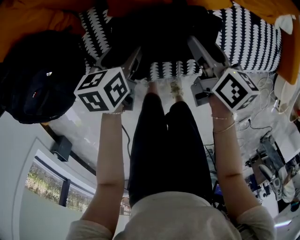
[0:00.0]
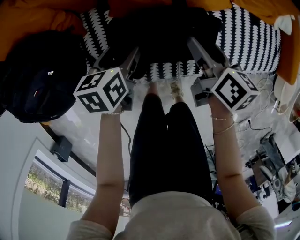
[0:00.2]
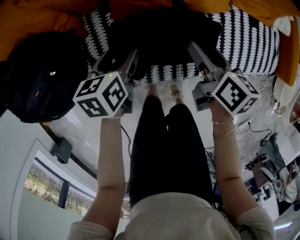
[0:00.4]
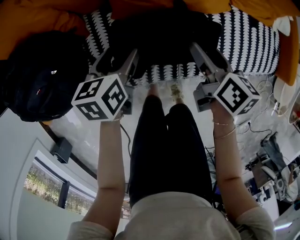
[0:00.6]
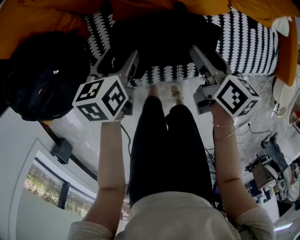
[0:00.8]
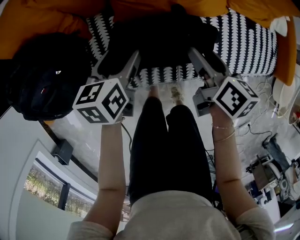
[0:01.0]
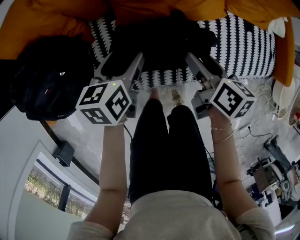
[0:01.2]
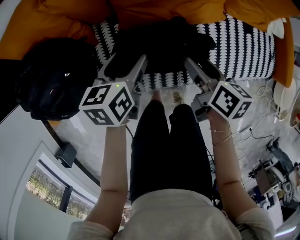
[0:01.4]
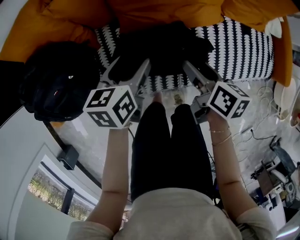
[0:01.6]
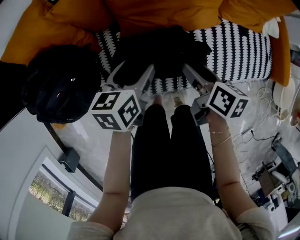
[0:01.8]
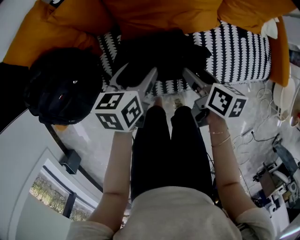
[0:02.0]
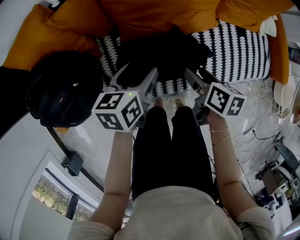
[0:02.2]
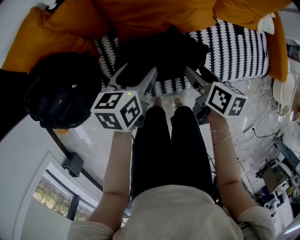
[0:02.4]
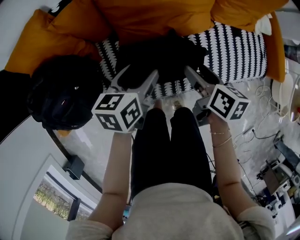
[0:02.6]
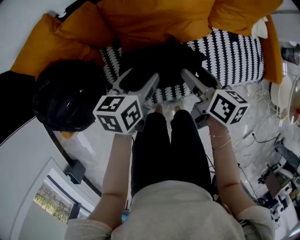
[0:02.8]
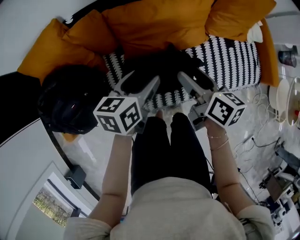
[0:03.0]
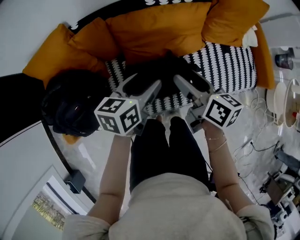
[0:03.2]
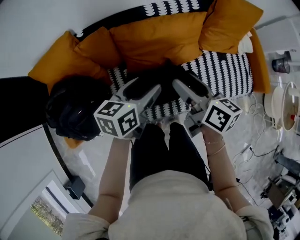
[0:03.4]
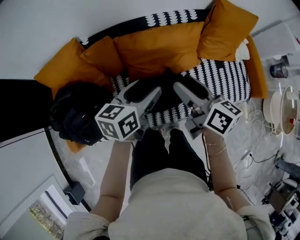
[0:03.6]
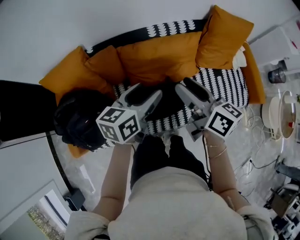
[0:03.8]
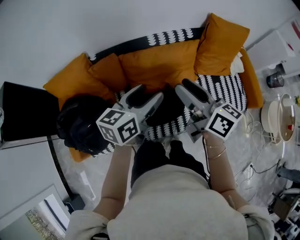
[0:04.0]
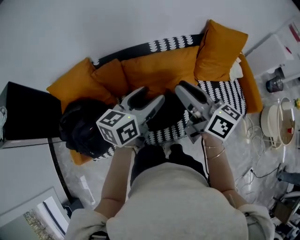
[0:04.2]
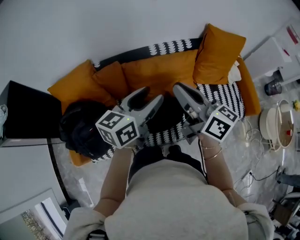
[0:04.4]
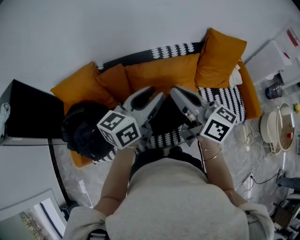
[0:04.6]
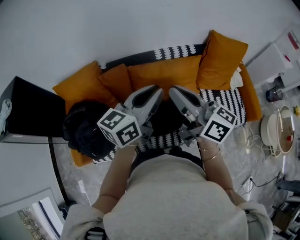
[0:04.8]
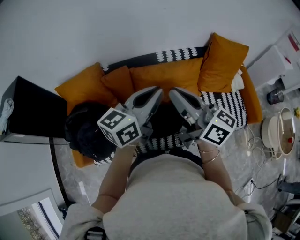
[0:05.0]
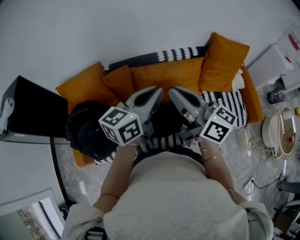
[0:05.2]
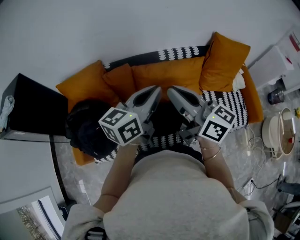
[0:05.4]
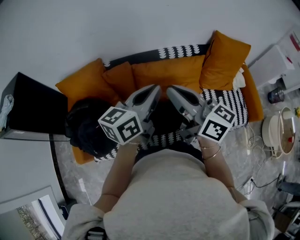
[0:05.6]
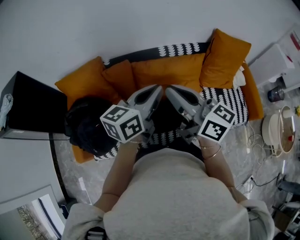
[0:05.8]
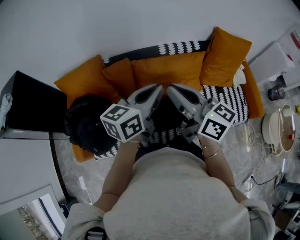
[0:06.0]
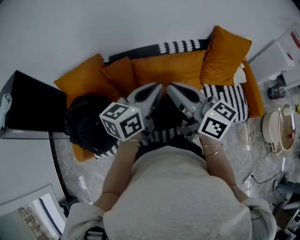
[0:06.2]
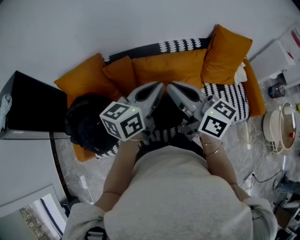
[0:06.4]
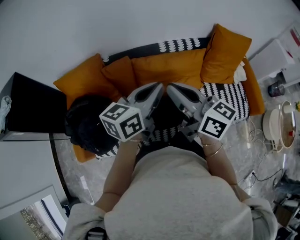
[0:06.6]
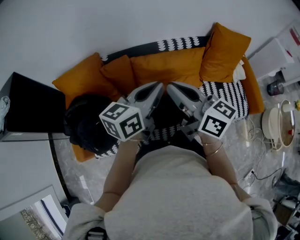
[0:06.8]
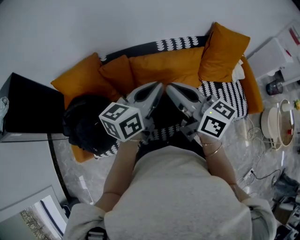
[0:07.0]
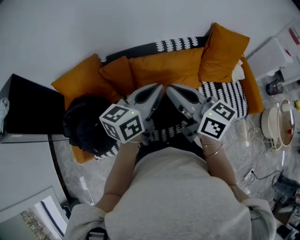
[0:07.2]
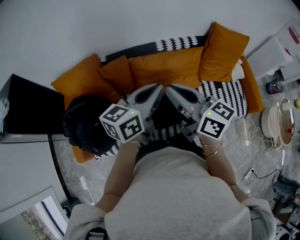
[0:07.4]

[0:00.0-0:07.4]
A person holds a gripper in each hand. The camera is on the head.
0:00.0 to 0:01.4: The right gripper goes about 5 cm upward, while the left gripper heads upward, covering some 10 cm.
0:01.4 to 0:03.0: The grippers both shift upward by about 15 cm.
0:03.0 to 0:04.4: Both grippers travel together upward, about 25 cm. The right gripper swivels some 30 degrees, and closes. Meanwhile the left gripper changes its angle by approximately 30 degrees.
0:04.4 to 0:06.0: The right gripper heads to the left, covering approximately 5 cm. The left gripper closes.
0:06.0 to 0:07.4: The grippers make only small movements.

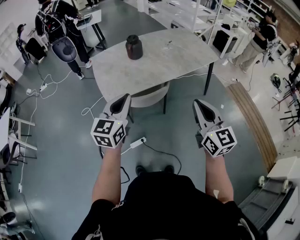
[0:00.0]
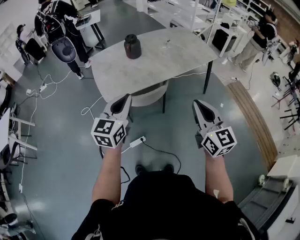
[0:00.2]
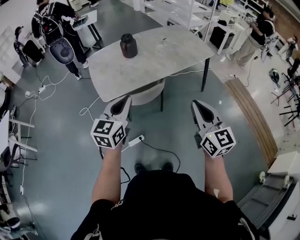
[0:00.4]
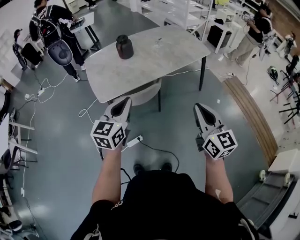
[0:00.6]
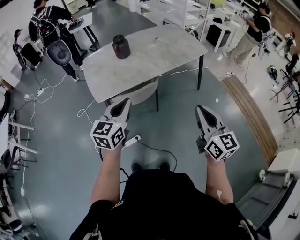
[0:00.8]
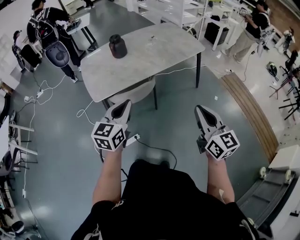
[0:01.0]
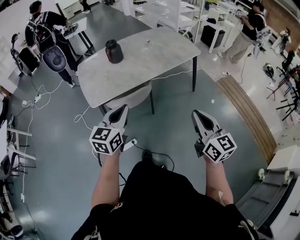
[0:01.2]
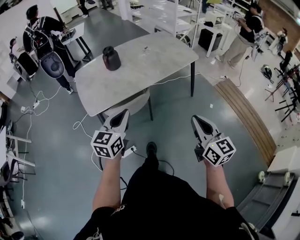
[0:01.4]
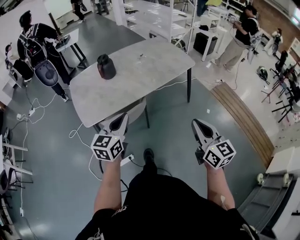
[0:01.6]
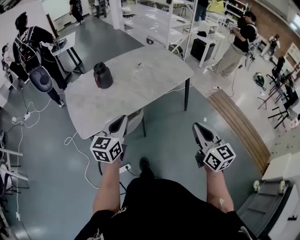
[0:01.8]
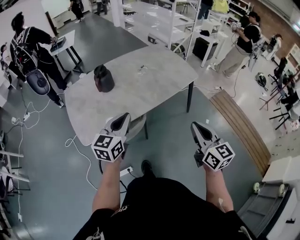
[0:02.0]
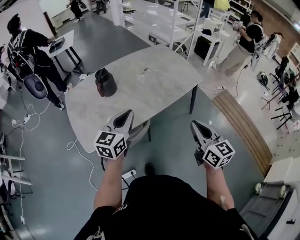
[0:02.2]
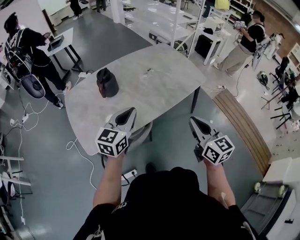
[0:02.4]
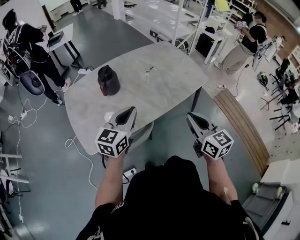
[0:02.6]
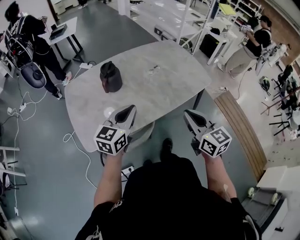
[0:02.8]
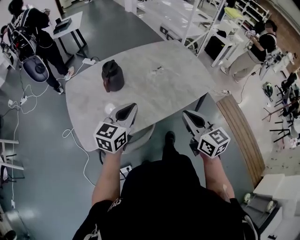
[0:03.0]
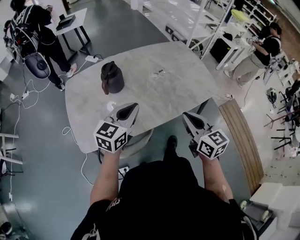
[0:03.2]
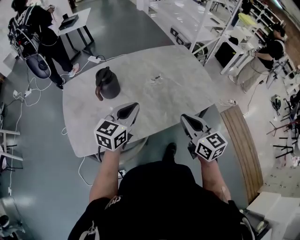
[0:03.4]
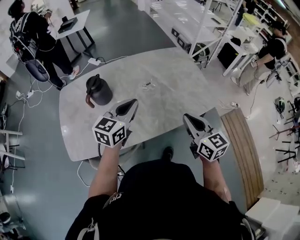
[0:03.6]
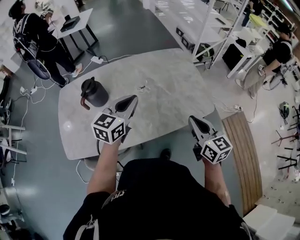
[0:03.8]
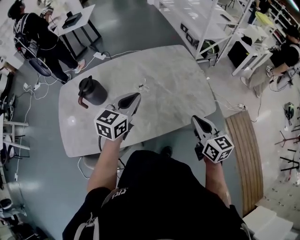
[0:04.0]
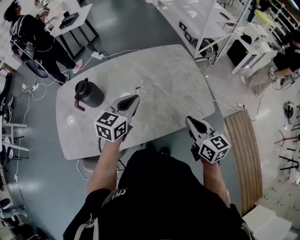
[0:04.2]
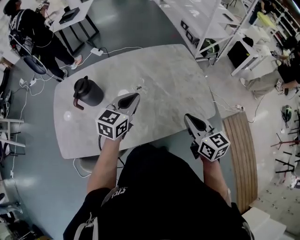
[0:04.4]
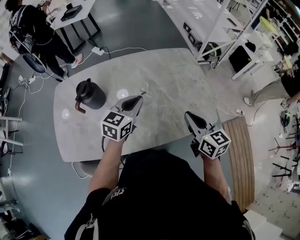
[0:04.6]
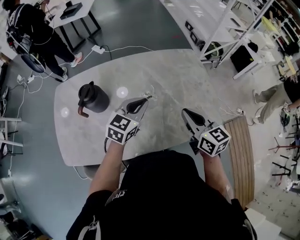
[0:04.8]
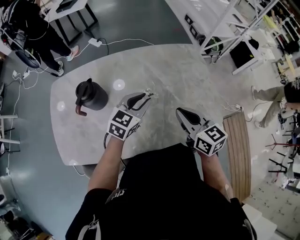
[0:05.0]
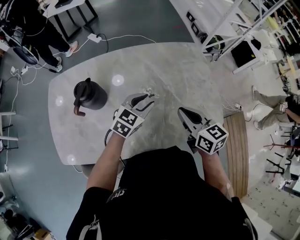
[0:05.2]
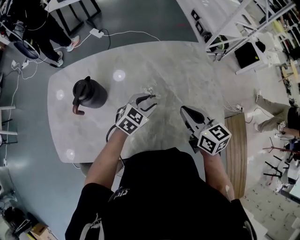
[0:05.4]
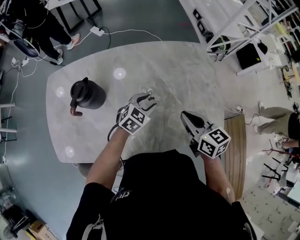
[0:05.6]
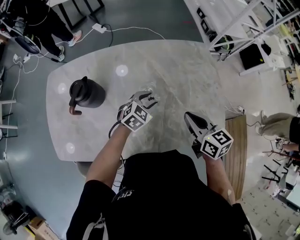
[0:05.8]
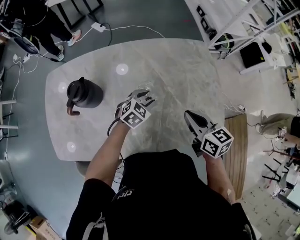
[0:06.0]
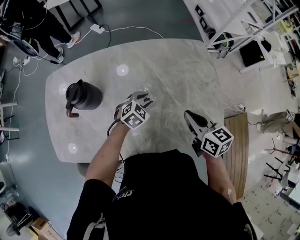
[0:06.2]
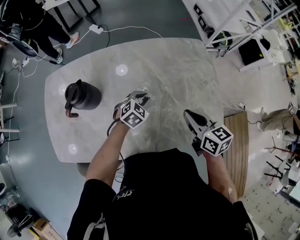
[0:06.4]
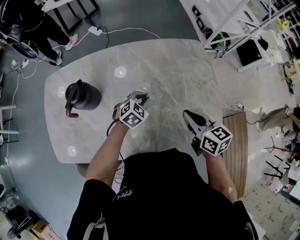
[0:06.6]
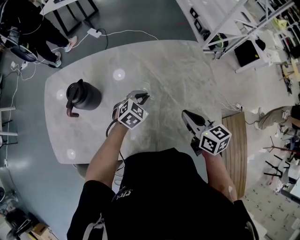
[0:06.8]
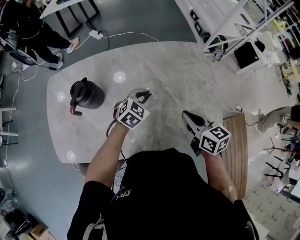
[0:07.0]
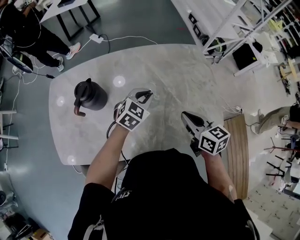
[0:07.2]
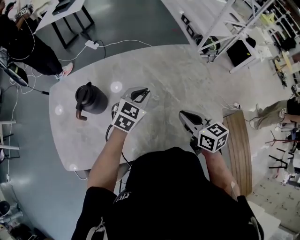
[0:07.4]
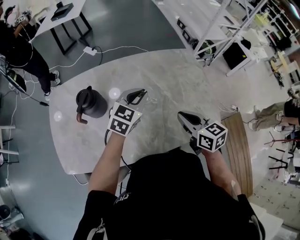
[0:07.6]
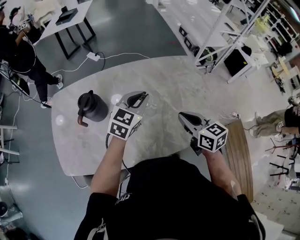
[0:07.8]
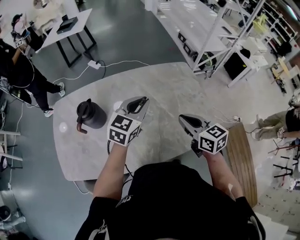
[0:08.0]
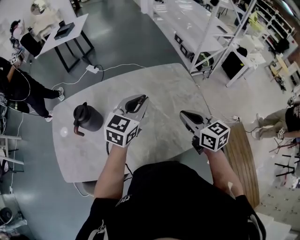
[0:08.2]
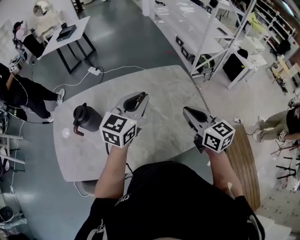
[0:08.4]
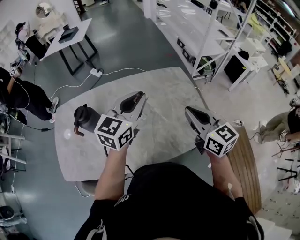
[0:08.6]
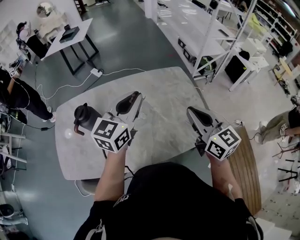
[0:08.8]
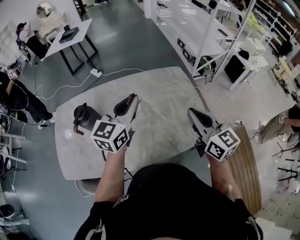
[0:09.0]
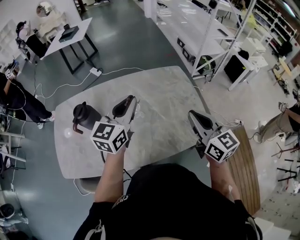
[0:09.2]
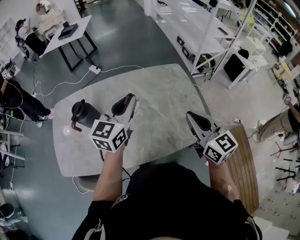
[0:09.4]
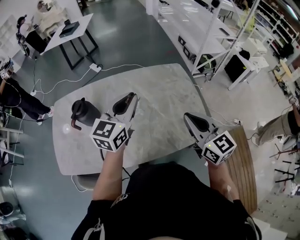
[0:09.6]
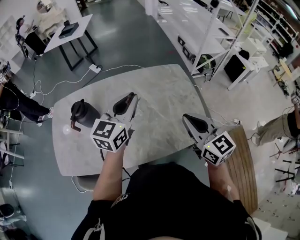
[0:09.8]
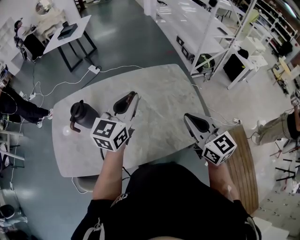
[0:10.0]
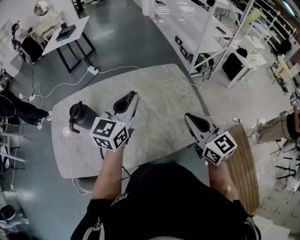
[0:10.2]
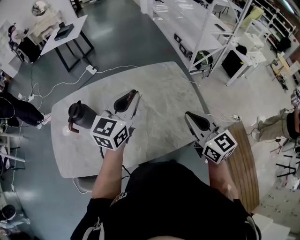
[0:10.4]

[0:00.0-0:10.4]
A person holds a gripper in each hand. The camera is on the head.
0:00.0 to 0:01.4: The grippers both shift to the right by approximately 15 cm.
0:01.4 to 0:03.0: Both grippers travel together forward, roughly 35 cm.
0:03.0 to 0:04.4: Both grippers travel together forward and to the right, approximately 30 cm.
0:04.4 to 0:06.0: The left gripper shifts some 25 cm downward and forward, rotates some 30 degrees, and opens, while the right gripper travels forward, downward and to the left by some 15 cm.
0:06.0 to 0:07.4: The right gripper shifts by roughly 5 cm. Meanwhile the left gripper travels upward by approximately 15 cm, and closes its fingers.
0:07.4 to 0:09.0: The right gripper is displaced upward and to the right by roughly 20 cm, and swivels roughly 20 degrees. Meanwhile the left gripper moves upward, about 20 cm, and rotates roughly 30 degrees.
0:09.0 to 0:10.4: There are only small adjustments of the grippers.

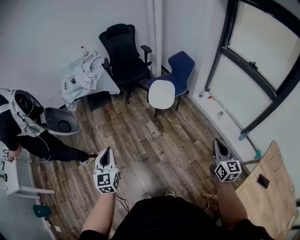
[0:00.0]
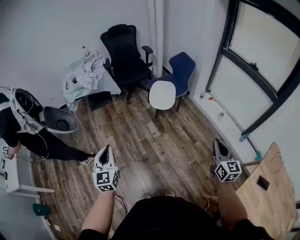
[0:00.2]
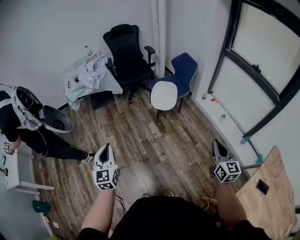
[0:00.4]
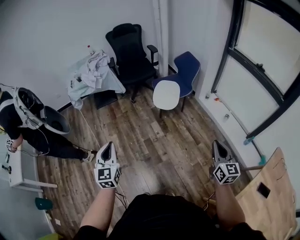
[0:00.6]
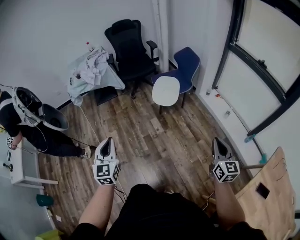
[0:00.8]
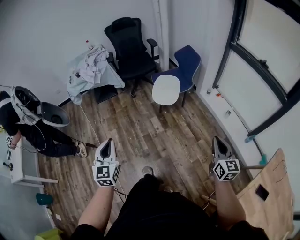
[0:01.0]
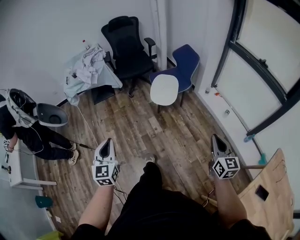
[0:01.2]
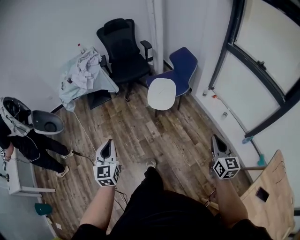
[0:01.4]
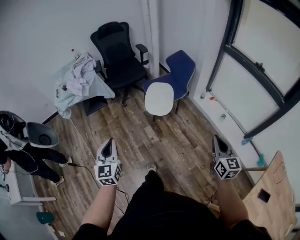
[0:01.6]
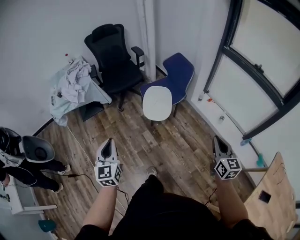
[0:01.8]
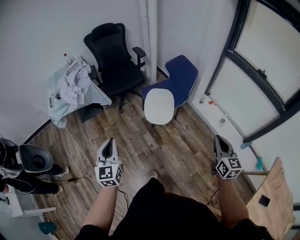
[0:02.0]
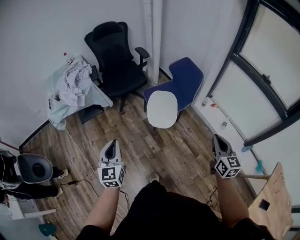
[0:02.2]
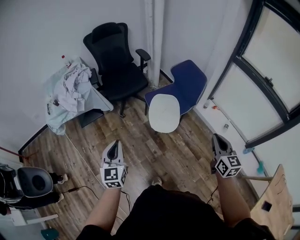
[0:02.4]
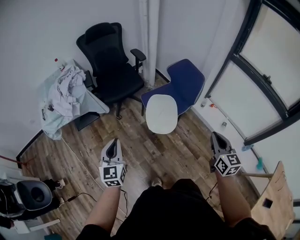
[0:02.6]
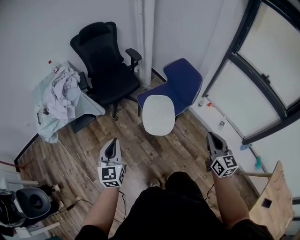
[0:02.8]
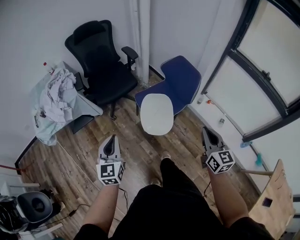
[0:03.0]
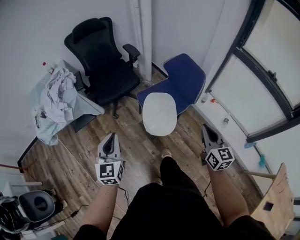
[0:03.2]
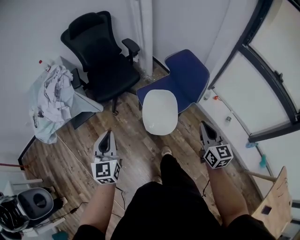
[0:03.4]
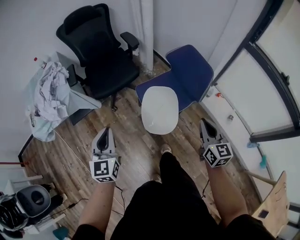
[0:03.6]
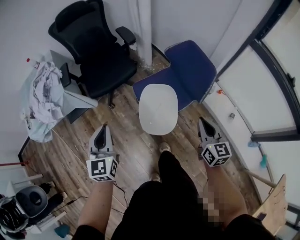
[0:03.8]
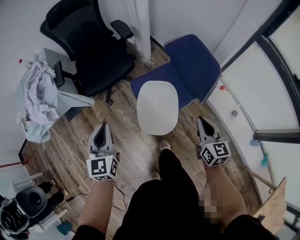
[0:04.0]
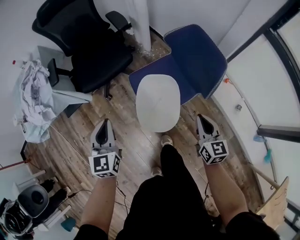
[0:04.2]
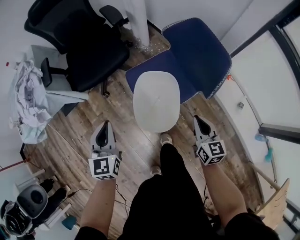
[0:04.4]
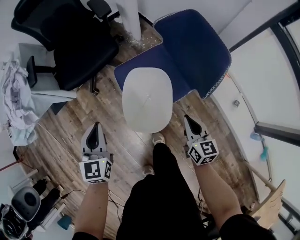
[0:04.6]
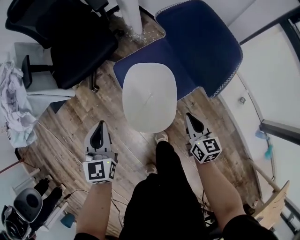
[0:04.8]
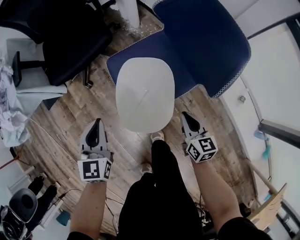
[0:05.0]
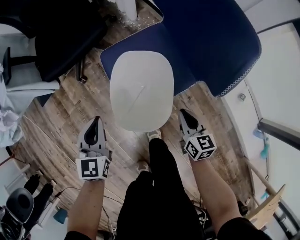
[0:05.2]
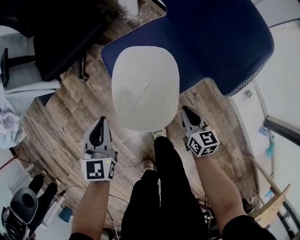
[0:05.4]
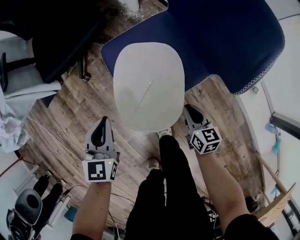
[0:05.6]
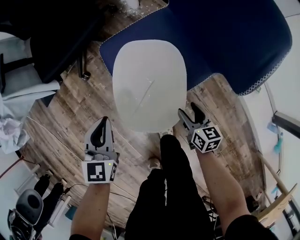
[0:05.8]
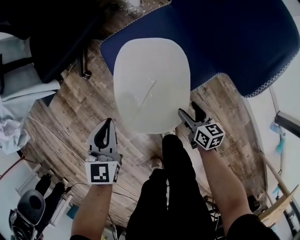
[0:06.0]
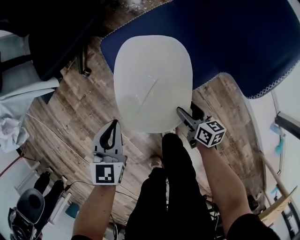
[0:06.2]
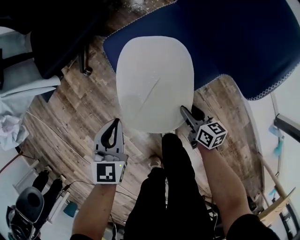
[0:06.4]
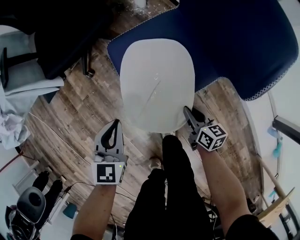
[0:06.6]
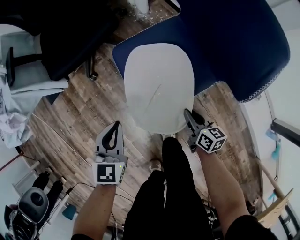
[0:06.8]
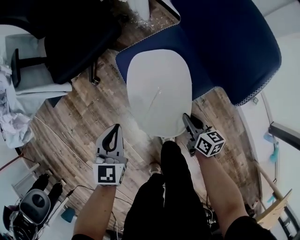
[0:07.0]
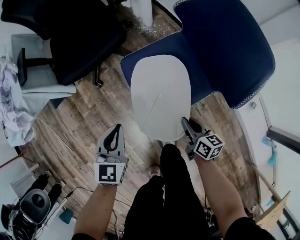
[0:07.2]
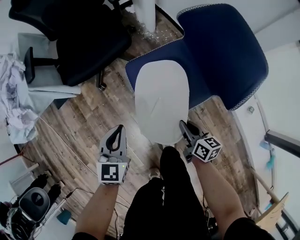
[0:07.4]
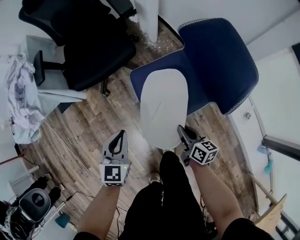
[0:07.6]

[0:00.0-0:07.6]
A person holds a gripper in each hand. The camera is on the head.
0:00.0 to 0:01.6: The left gripper travels forward and to the right by roughly 20 cm. Meanwhile the right gripper goes approximately 15 cm forward.
0:01.6 to 0:03.0: The left gripper is displaced forward by about 30 cm. Meanwhile the right gripper heads forward and to the left, covering approximately 30 cm.
0:03.0 to 0:04.6: The left gripper heads forward, downward and to the right, covering roughly 30 cm; the right gripper shifts approximately 40 cm downward and forward, and turns by some 20 degrees.
0:04.6 to 0:06.0: Both grippers move downward, about 20 cm. The right gripper swivels roughly 20 degrees, and opens.
0:06.0 to 0:07.6: The right gripper travels upward and to the left by about 20 cm, and closes up. The left gripper heads upward, covering about 10 cm.
